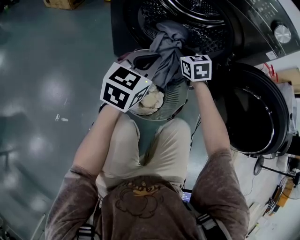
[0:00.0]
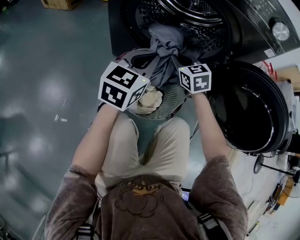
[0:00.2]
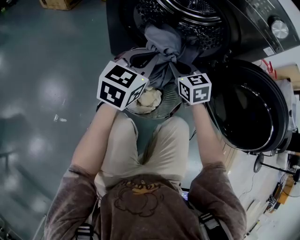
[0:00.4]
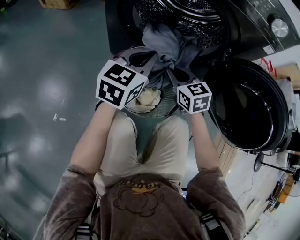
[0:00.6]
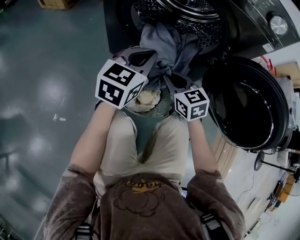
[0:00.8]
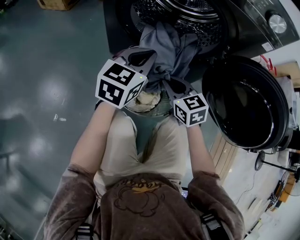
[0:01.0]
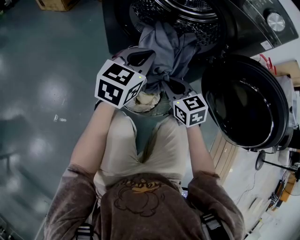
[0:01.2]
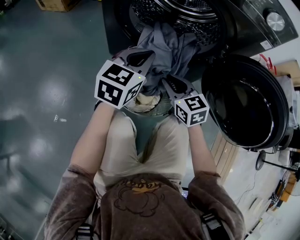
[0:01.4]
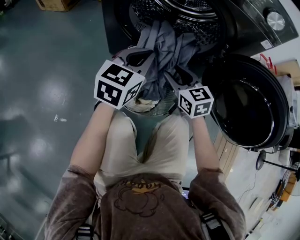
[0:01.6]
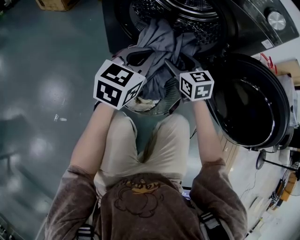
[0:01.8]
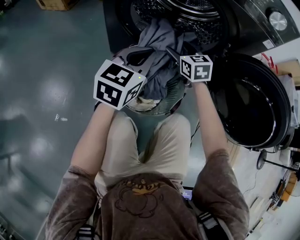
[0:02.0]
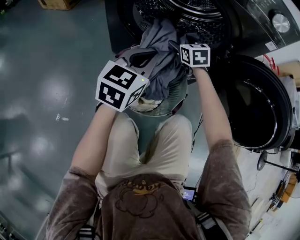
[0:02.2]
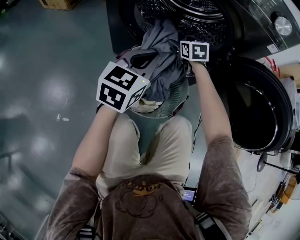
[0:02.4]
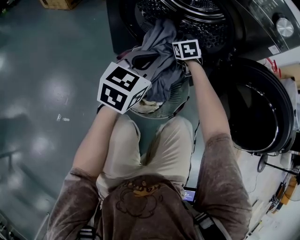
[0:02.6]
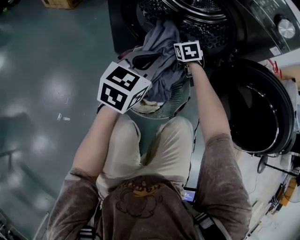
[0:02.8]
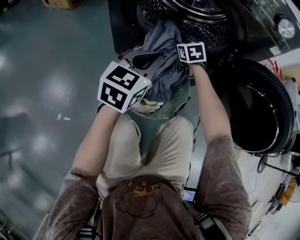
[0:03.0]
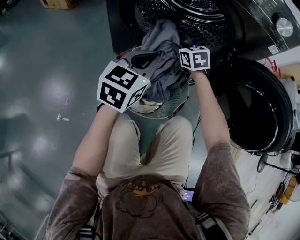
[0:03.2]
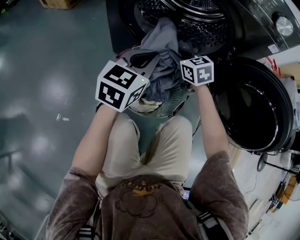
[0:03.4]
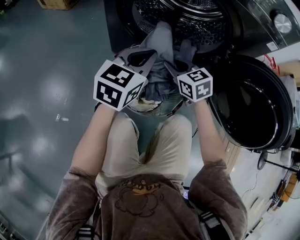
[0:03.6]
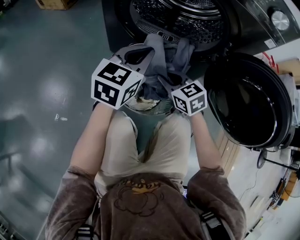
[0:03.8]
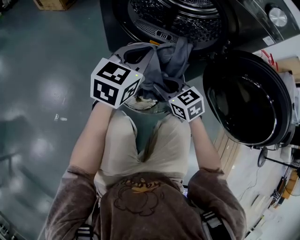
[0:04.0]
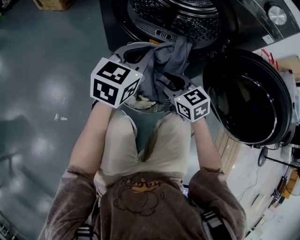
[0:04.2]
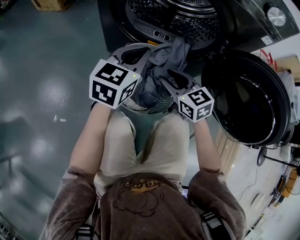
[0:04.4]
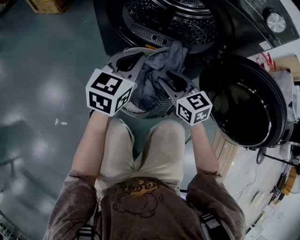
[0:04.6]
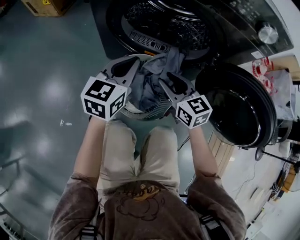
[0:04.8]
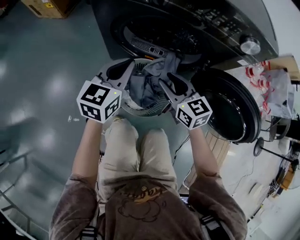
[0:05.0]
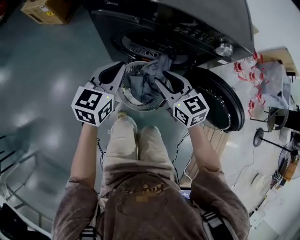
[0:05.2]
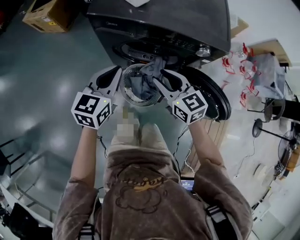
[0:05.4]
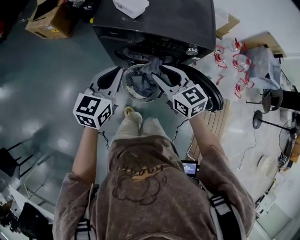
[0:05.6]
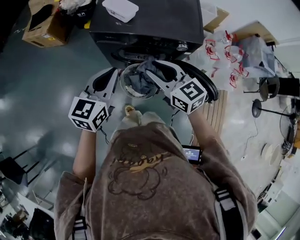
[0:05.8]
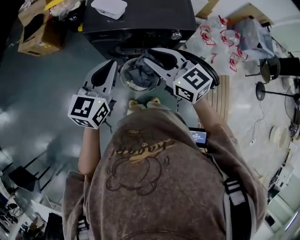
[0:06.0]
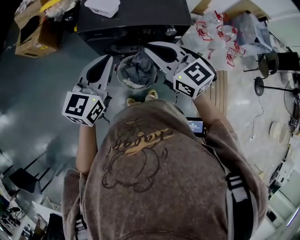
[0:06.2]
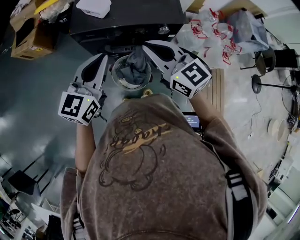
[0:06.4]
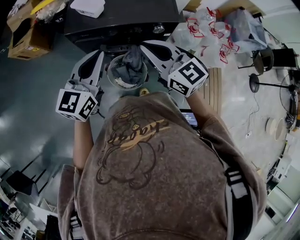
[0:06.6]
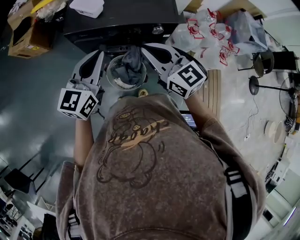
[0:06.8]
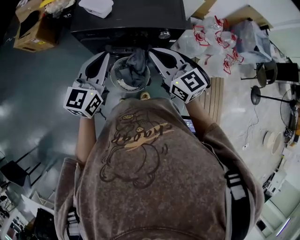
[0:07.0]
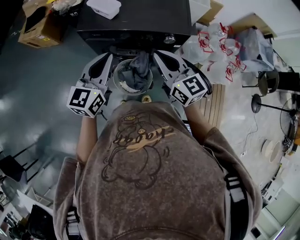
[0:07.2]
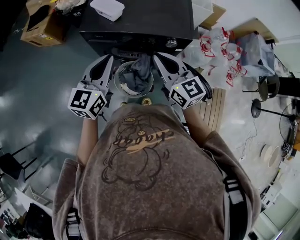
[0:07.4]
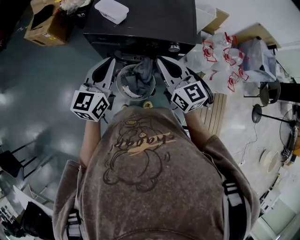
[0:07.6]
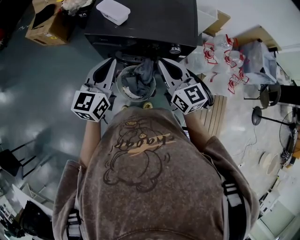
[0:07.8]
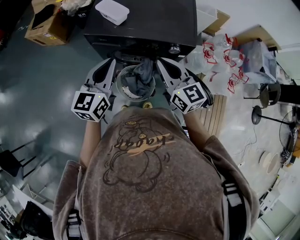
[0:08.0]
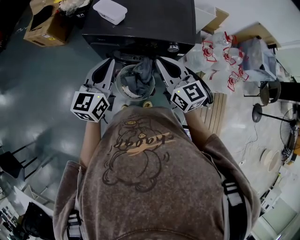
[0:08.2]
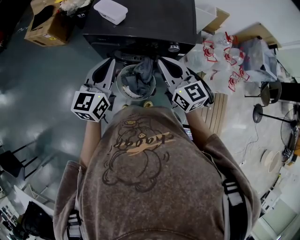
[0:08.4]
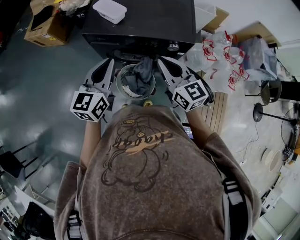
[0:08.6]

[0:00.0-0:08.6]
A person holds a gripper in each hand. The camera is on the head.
0:00.0 to 0:01.4: The right gripper shifts roughly 15 cm backward.
0:01.4 to 0:02.8: The right gripper heads forward, covering roughly 25 cm, turns by some 20 degrees, and opens, then closes again.
0:02.8 to 0:04.4: The right gripper moves backward, approximately 20 cm, and changes its angle by some 30 degrees.
0:04.4 to 0:05.8: The grippers both shift upward by roughly 50 cm.
0:05.8 to 0:07.2: The right gripper is displaced to the right by approximately 10 cm. The left gripper moves to the right, approximately 5 cm.
0:07.2 to 0:08.6: The grippers make only small movements.

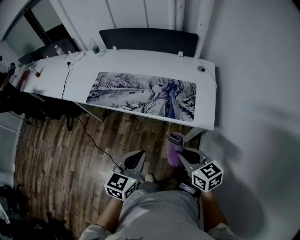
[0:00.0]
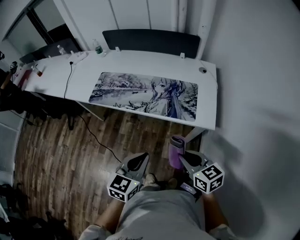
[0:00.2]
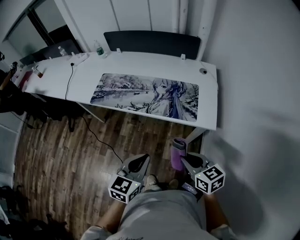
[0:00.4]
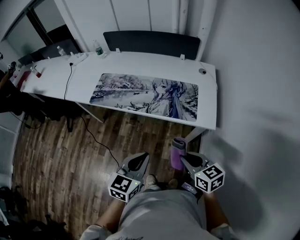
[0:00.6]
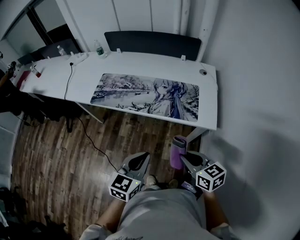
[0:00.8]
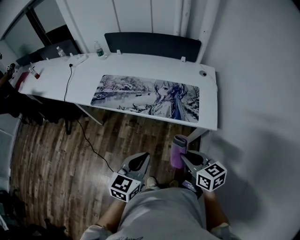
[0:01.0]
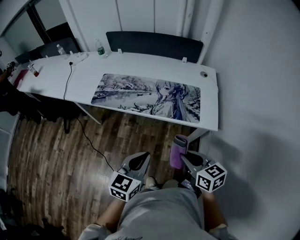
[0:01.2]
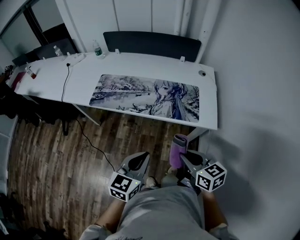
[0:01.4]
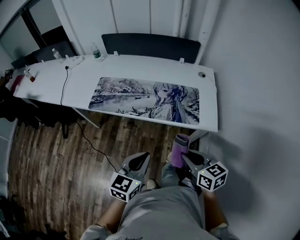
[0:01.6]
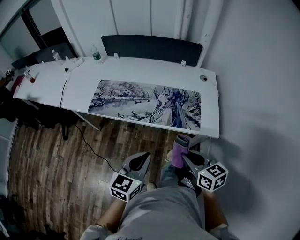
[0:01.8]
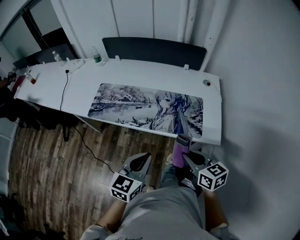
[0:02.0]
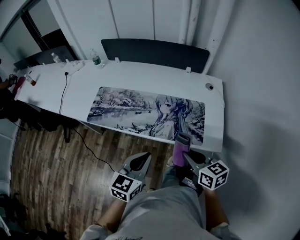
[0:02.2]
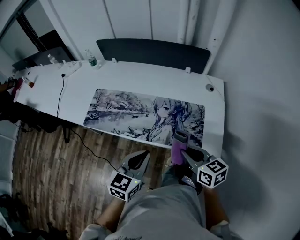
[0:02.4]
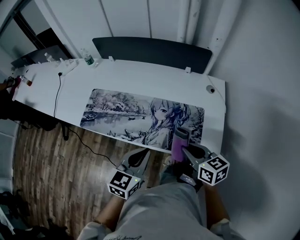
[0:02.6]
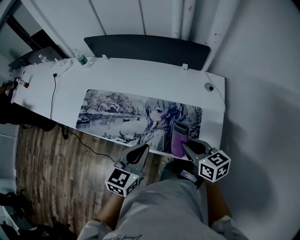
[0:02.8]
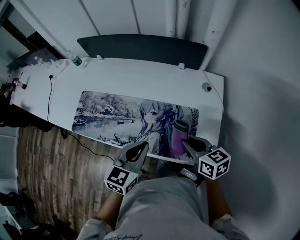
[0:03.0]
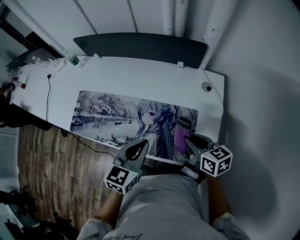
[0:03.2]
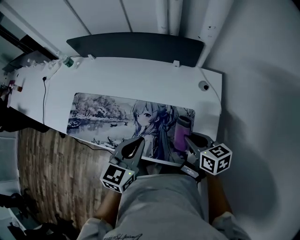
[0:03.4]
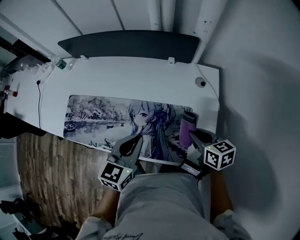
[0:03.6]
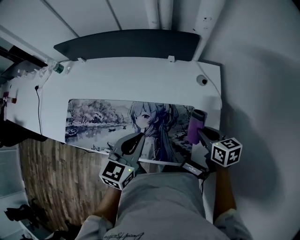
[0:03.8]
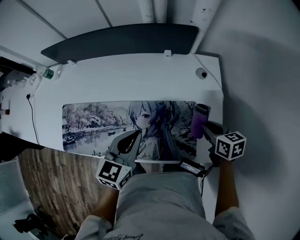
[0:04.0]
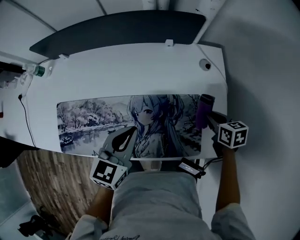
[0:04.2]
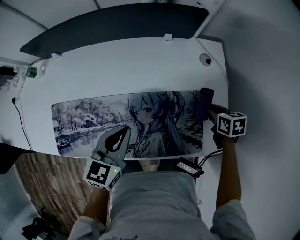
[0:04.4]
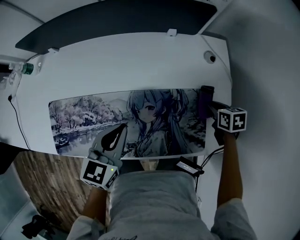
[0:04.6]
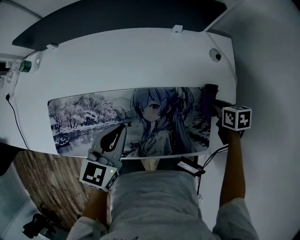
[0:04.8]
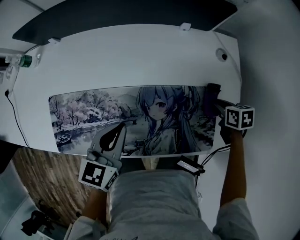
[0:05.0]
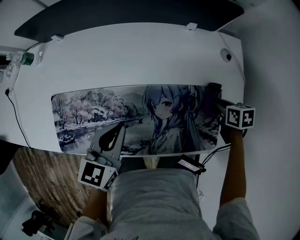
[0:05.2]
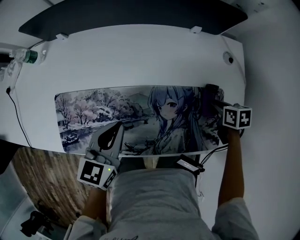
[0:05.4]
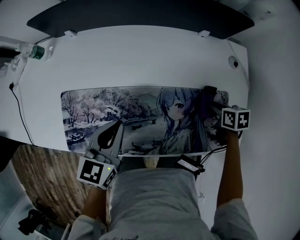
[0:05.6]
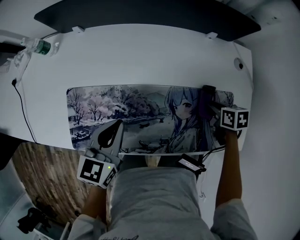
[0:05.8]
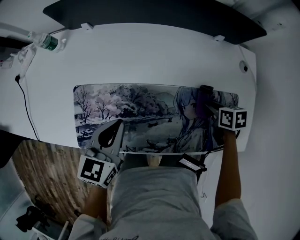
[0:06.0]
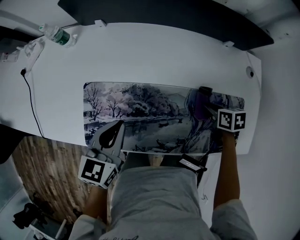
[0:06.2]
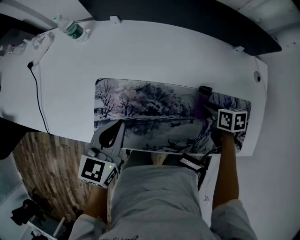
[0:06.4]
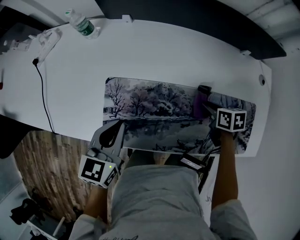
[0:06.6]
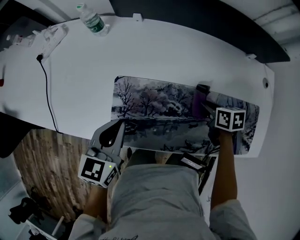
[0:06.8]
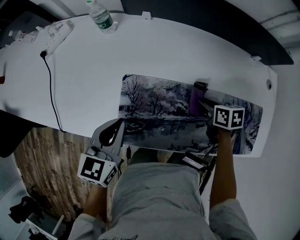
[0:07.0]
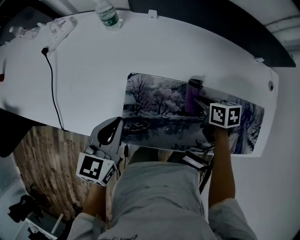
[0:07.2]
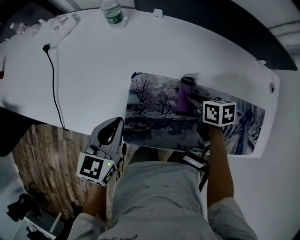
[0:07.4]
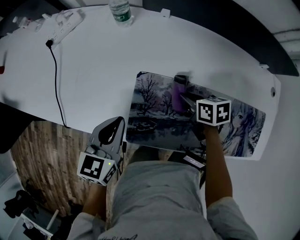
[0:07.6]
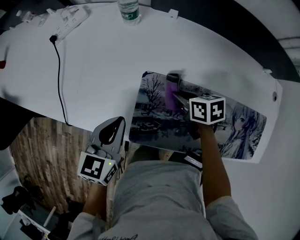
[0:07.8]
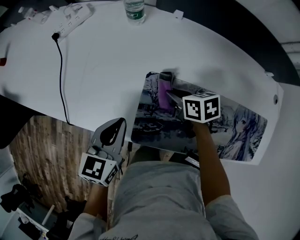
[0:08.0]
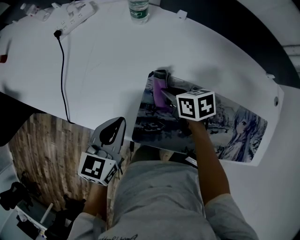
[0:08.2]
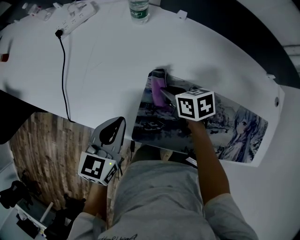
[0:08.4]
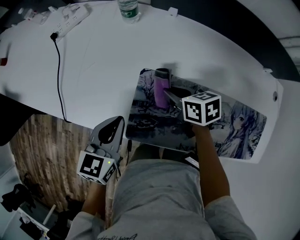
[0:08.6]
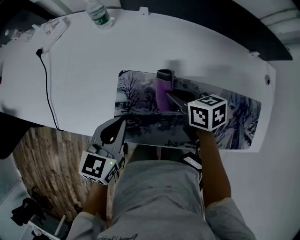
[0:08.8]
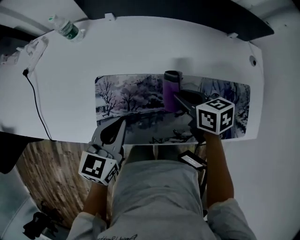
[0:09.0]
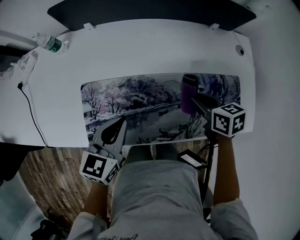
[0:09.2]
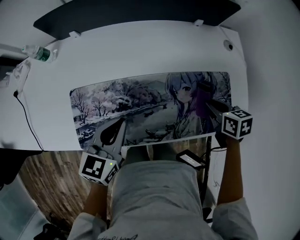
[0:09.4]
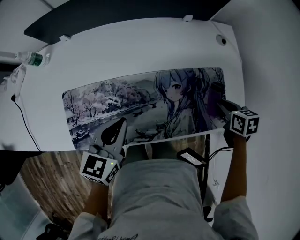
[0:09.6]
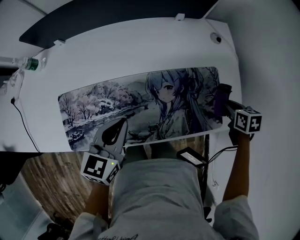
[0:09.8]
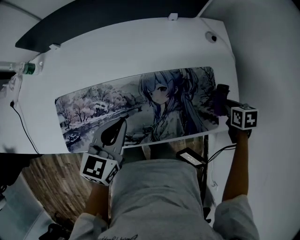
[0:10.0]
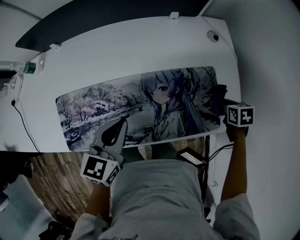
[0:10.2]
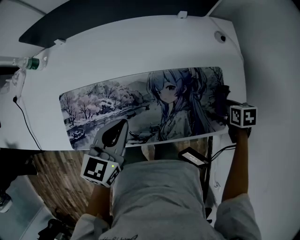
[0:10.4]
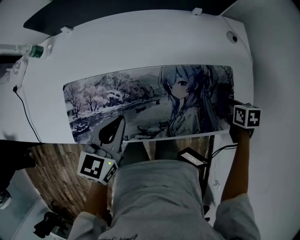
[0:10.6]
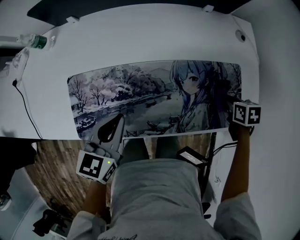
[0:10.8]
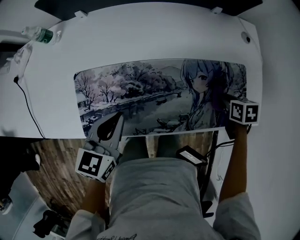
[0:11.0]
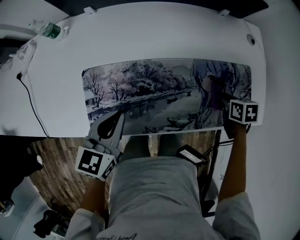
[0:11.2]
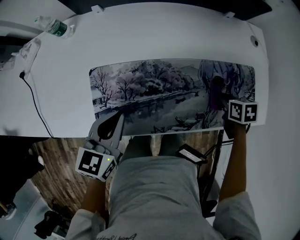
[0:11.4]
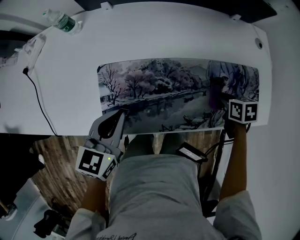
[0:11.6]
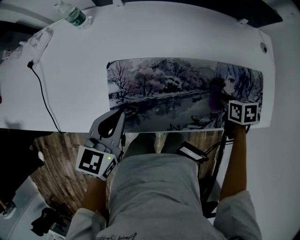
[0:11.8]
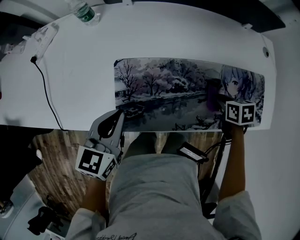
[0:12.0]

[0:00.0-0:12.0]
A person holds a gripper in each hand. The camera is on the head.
0:00.0 to 0:01.6: The two grippers go roughly 5 cm to the left.
0:01.6 to 0:03.0: The grippers both shift forward and to the right by roughly 30 cm.
0:03.0 to 0:04.4: The right gripper shifts about 20 cm downward, to the right and forward, and changes its angle by roughly 40 degrees; the left gripper travels forward, to the left and downward by about 15 cm.
0:04.4 to 0:06.0: Both grippers travel together to the left, approximately 20 cm.
0:06.0 to 0:07.6: The grippers both shift to the left by some 30 cm.
0:07.6 to 0:09.0: The left gripper is displaced to the right by about 15 cm. Meanwhile the right gripper moves to the right, backward and upward, approximately 15 cm.
0:09.0 to 0:10.4: The right gripper heads to the right, covering about 50 cm, and tips its fingers downward by some 30 degrees. Meanwhile the left gripper travels to the right by about 20 cm.
0:10.4 to 0:12.0: The two grippers go approximately 35 cm to the left.

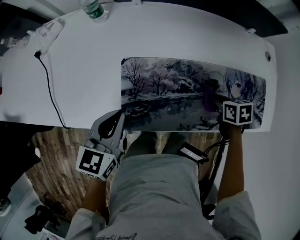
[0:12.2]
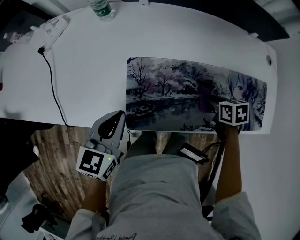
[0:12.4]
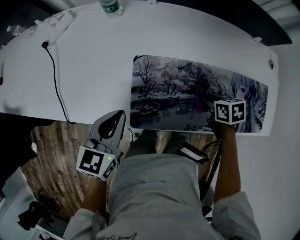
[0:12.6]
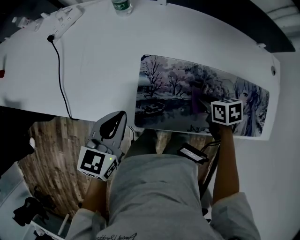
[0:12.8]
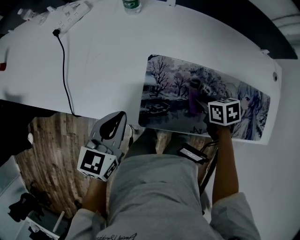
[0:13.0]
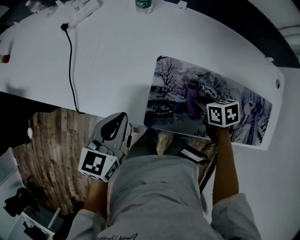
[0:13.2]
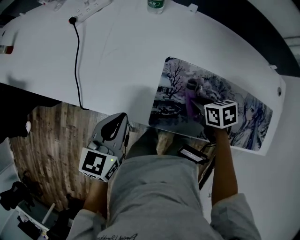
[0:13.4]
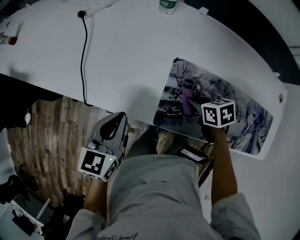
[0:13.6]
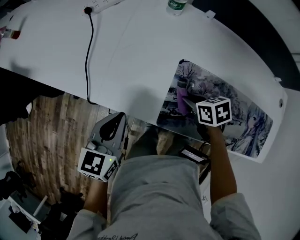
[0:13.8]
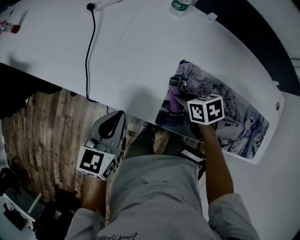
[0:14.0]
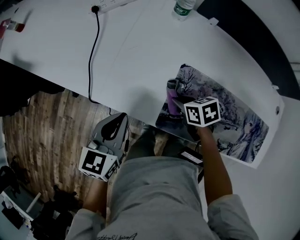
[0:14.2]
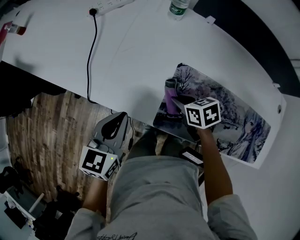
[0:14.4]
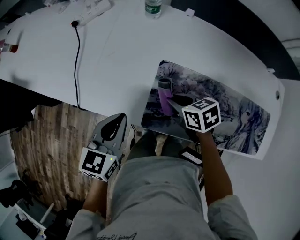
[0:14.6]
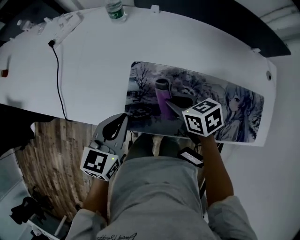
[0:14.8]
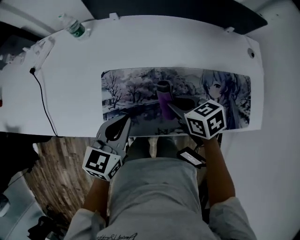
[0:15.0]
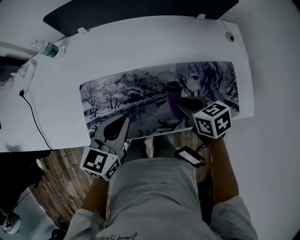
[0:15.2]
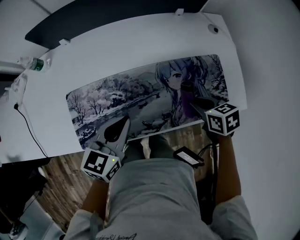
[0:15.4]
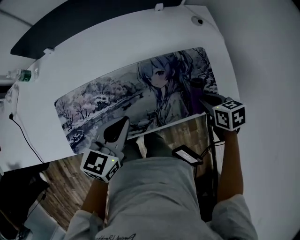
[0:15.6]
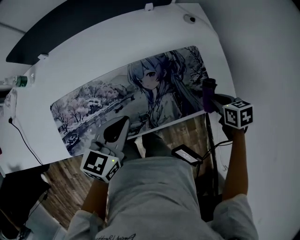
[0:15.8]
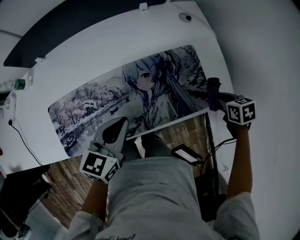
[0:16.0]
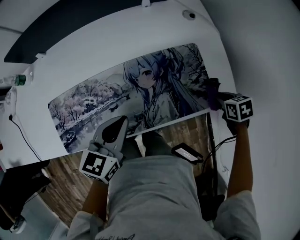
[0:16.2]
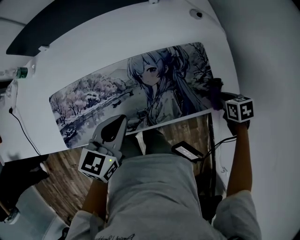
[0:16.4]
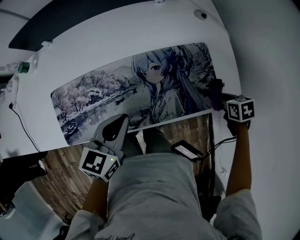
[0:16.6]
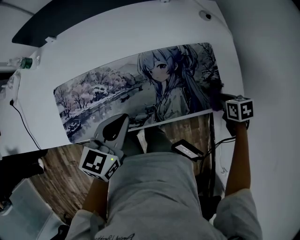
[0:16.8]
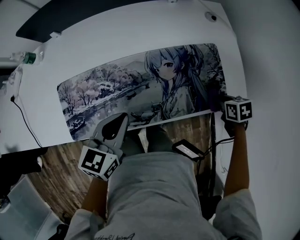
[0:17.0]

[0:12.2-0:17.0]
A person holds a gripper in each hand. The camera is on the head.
0:12.2 to 0:13.8: The left gripper ends up about 20 cm from where it was, and swivels roughly 20 degrees, while the right gripper changes place by roughly 30 cm, and rotates some 30 degrees.
0:13.8 to 0:15.4: The pair of grippers is taken approximately 40 cm. The right gripper turns by approximately 30 degrees. The left gripper turns by roughly 40 degrees.
0:15.4 to 0:17.0: The right gripper travels to the right and downward by roughly 20 cm.
